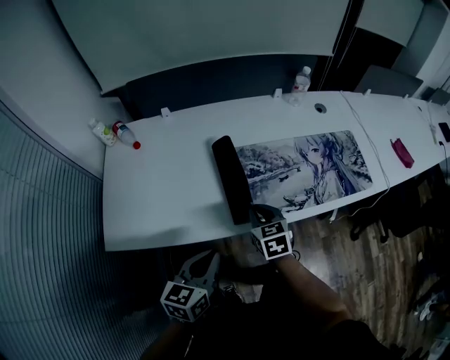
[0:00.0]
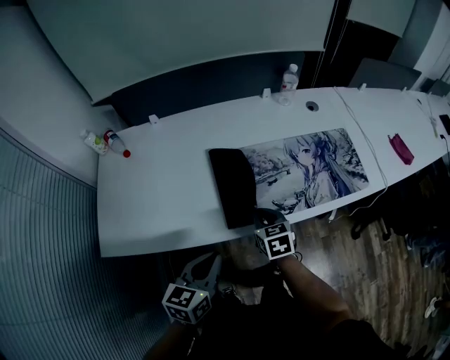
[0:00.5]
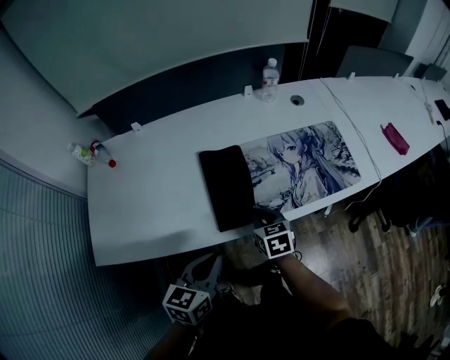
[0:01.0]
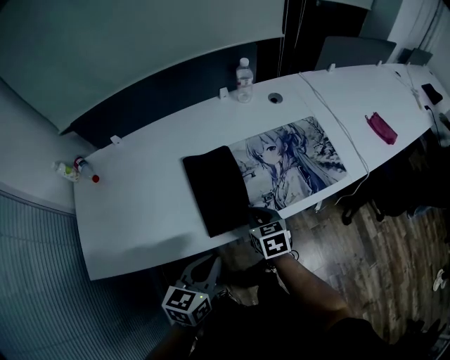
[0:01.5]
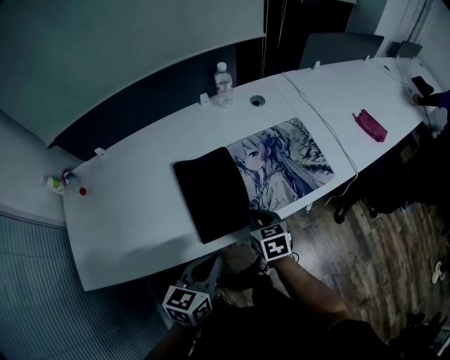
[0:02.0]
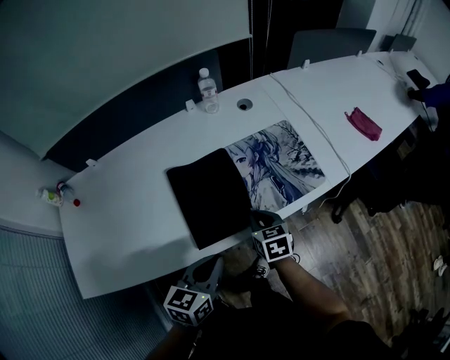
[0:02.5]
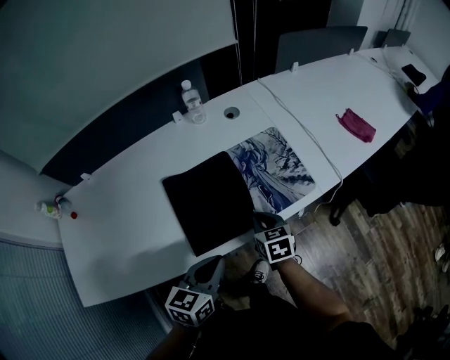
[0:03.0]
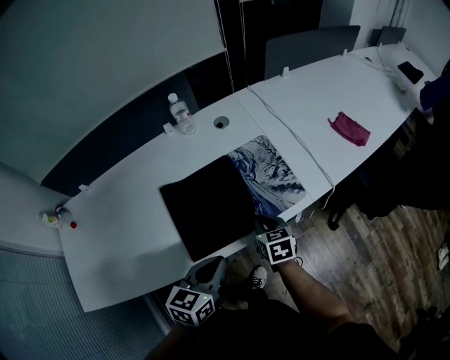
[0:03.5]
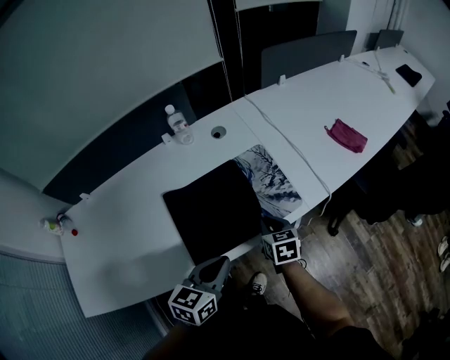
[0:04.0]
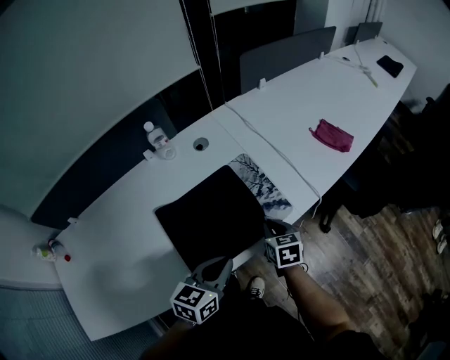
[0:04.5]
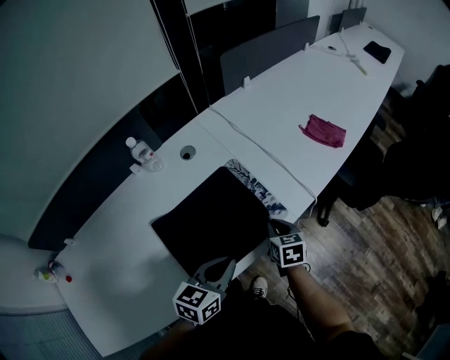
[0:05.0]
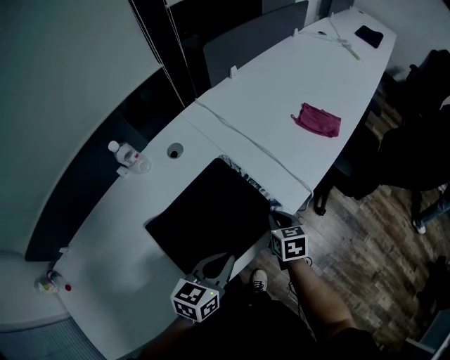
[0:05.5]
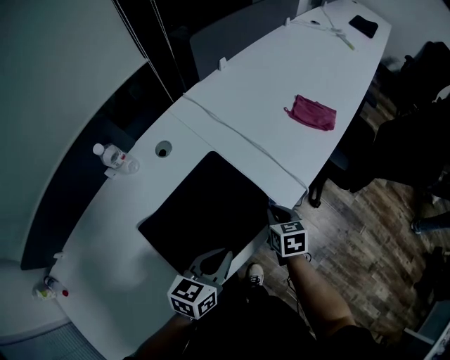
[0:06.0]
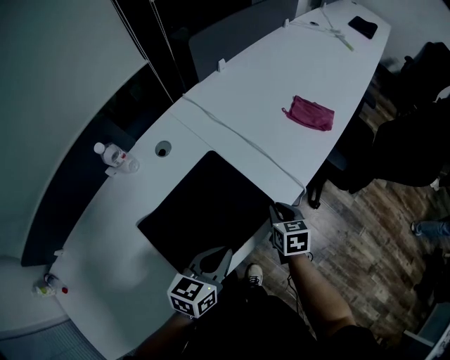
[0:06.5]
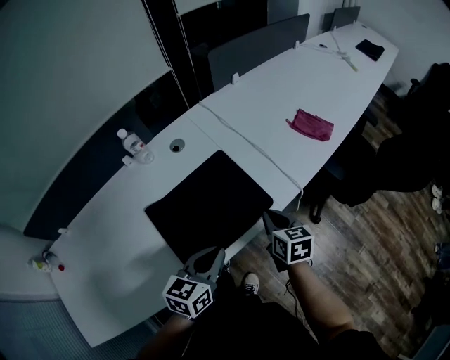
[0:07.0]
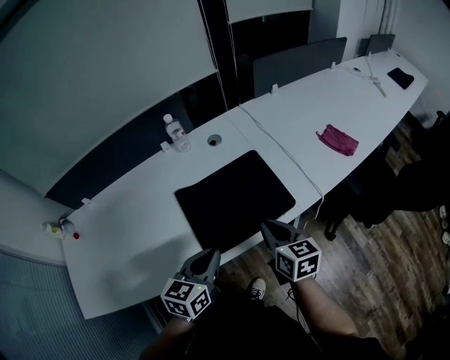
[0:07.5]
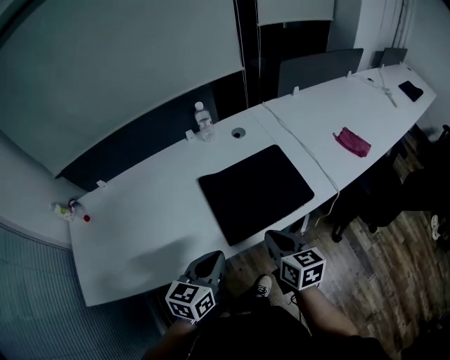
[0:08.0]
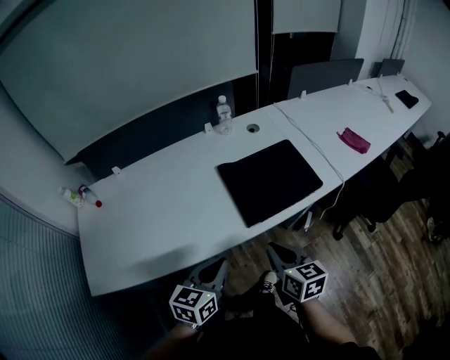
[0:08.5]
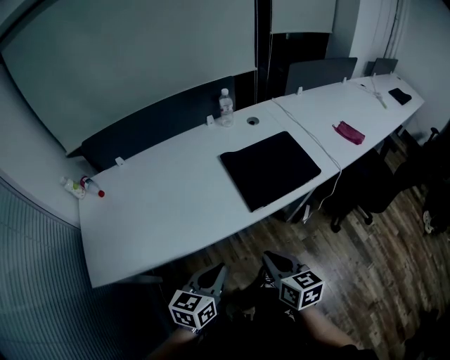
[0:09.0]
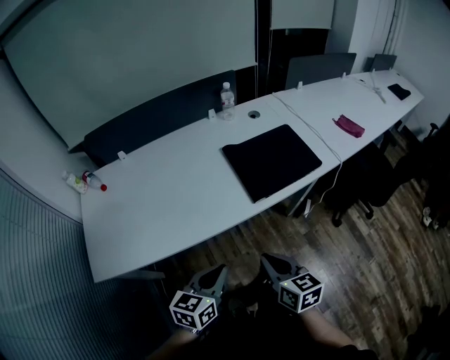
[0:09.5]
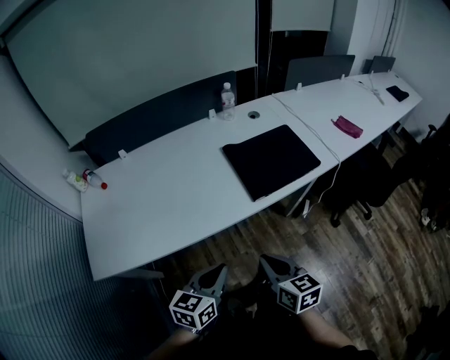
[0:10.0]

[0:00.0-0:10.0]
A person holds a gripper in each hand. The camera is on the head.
0:00.0 to 0:02.0: The right gripper travels to the right by roughly 20 cm, while the left gripper travels to the right and forward by roughly 20 cm.
0:02.0 to 0:04.0: The grippers both shift to the right and forward by about 20 cm.
0:04.0 to 0:06.0: The right gripper is displaced to the right and forward by roughly 15 cm, and rotates about 20 degrees. Meanwhile the left gripper is displaced forward by about 15 cm, and swivels roughly 20 degrees.
0:06.0 to 0:08.0: The left gripper changes place by some 25 cm, and rotates roughly 30 degrees. Meanwhile the right gripper changes place by some 30 cm, and swivels approximately 30 degrees.
0:08.0 to 0:10.0: Both grippers travel together backward and to the left, some 25 cm.

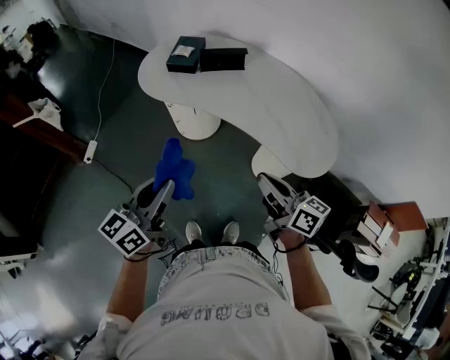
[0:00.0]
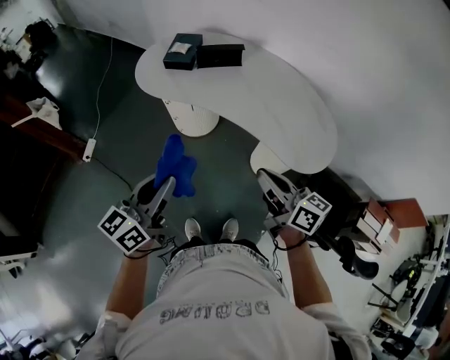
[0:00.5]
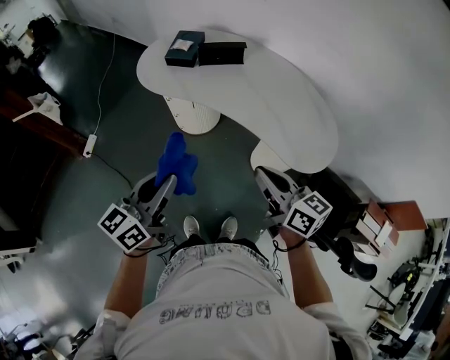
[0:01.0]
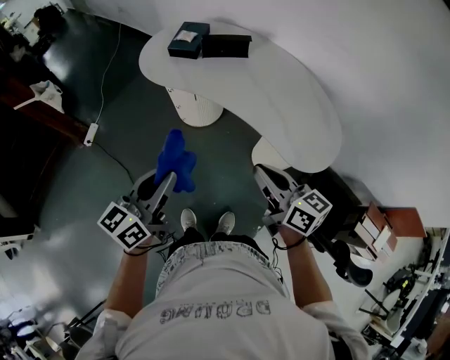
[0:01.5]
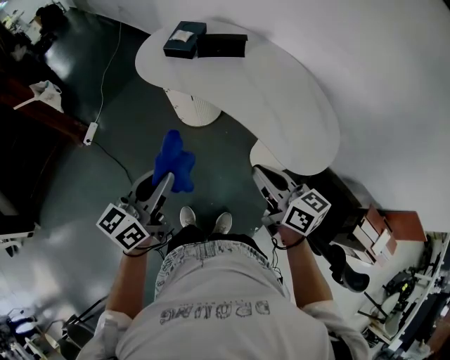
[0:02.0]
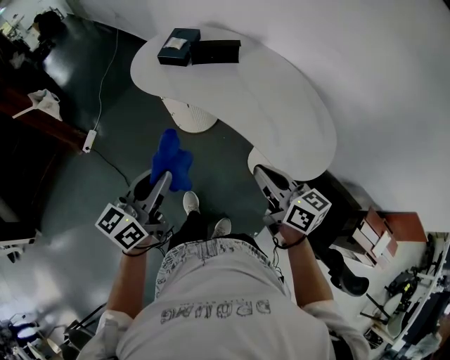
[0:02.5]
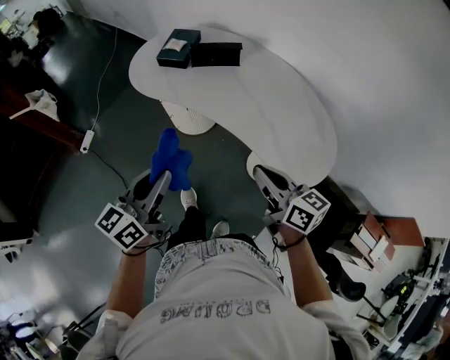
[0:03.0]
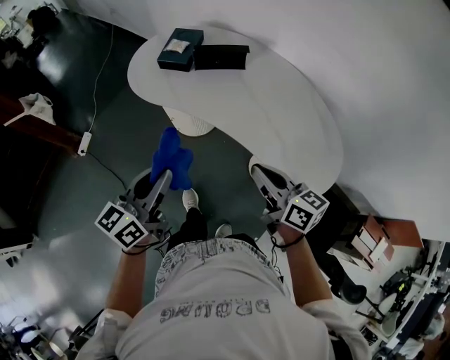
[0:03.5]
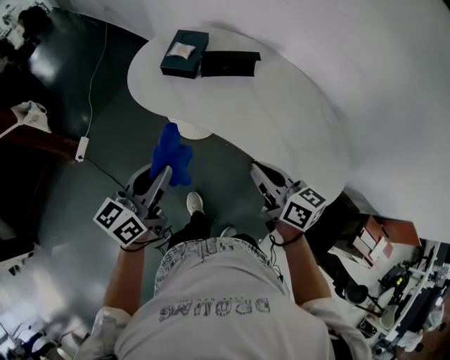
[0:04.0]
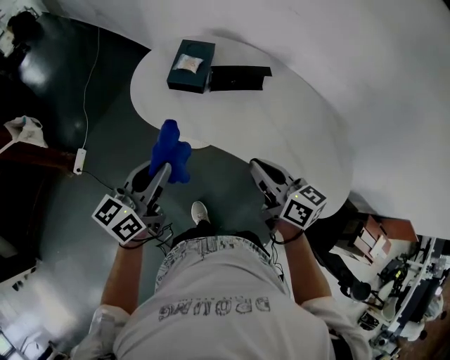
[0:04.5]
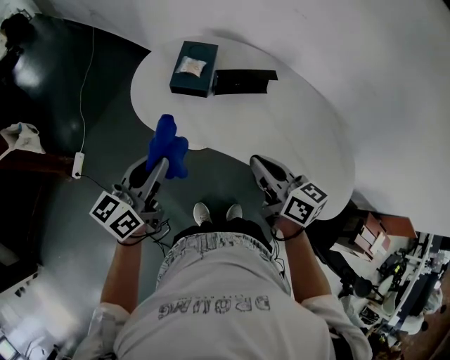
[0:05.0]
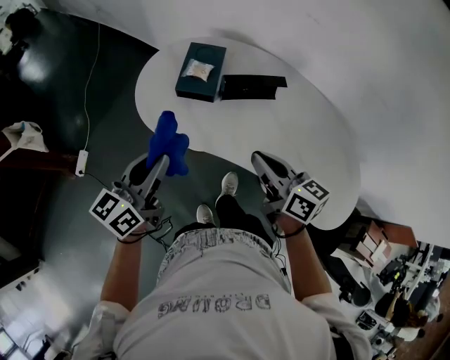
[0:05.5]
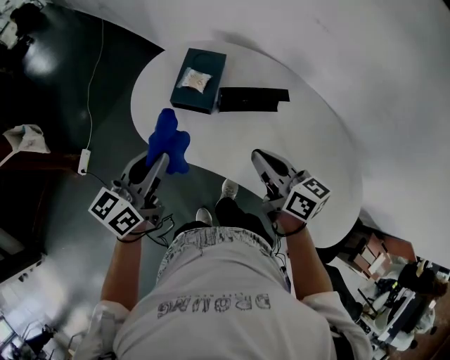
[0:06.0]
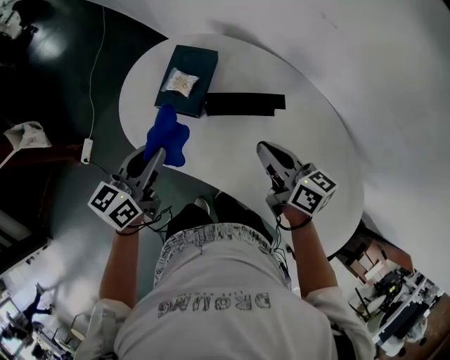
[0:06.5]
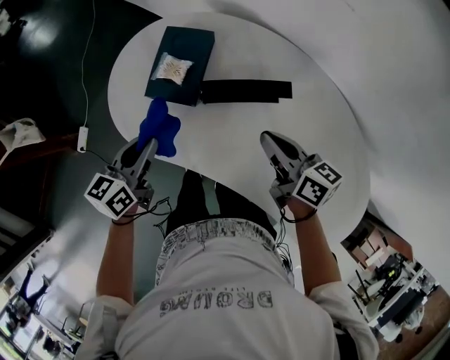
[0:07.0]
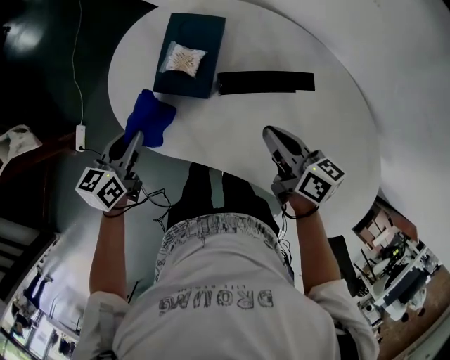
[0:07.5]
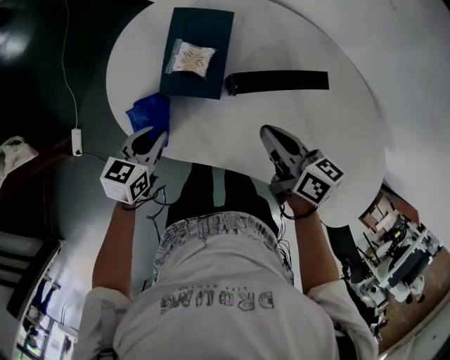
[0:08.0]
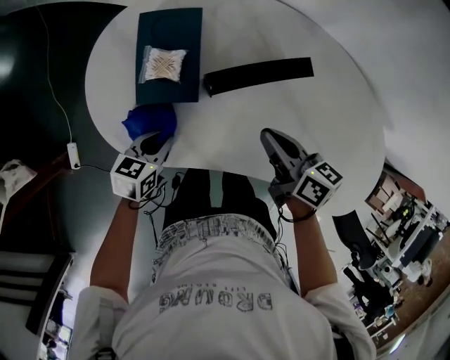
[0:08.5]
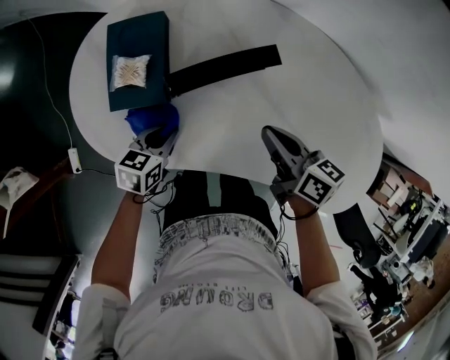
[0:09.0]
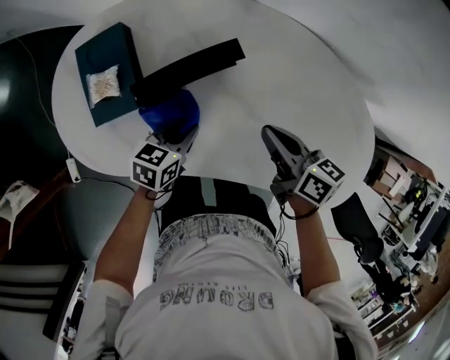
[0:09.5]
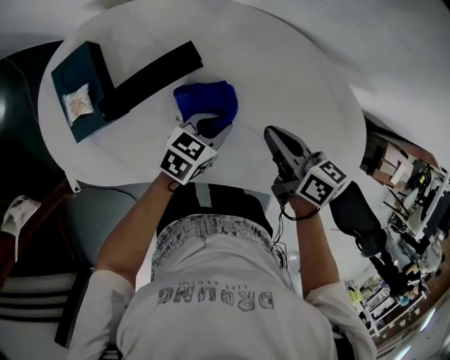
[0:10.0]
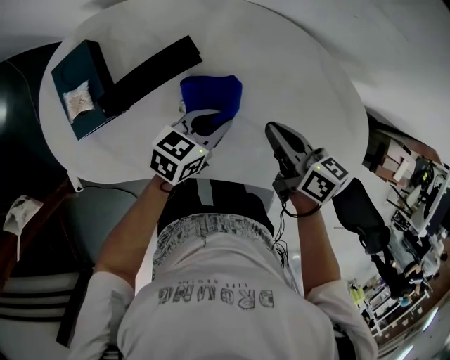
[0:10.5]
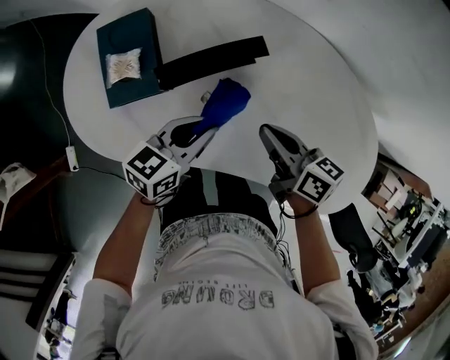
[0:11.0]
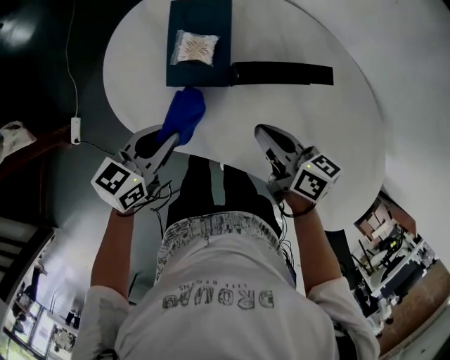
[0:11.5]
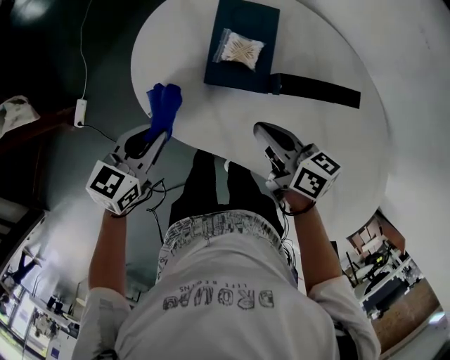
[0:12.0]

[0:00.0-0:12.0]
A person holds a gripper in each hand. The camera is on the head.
0:00.0 to 0:02.0: The left gripper goes roughly 5 cm to the right.
0:02.0 to 0:04.0: The two grippers go roughly 20 cm forward.
0:04.0 to 0:06.0: Both grippers move forward, some 25 cm.
0:06.0 to 0:08.0: The right gripper moves downward and forward, approximately 15 cm. Meanwhile the left gripper travels downward and forward by about 25 cm, and points its fingers approximately 30 degrees further downward.
0:08.0 to 0:10.0: The right gripper changes place by about 30 cm. The left gripper ends up some 40 cm from where it was, and rotates roughly 40 degrees.
0:10.0 to 0:12.0: The right gripper changes place by about 35 cm, and swivels roughly 30 degrees; the left gripper ends up approximately 50 cm from where it was, and changes its angle by roughly 40 degrees.

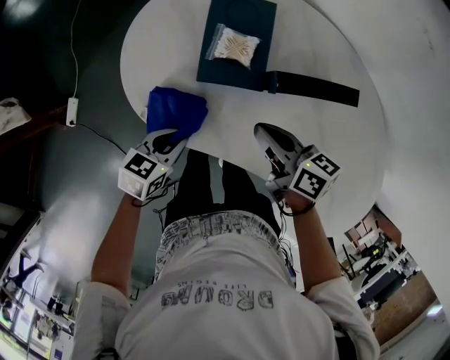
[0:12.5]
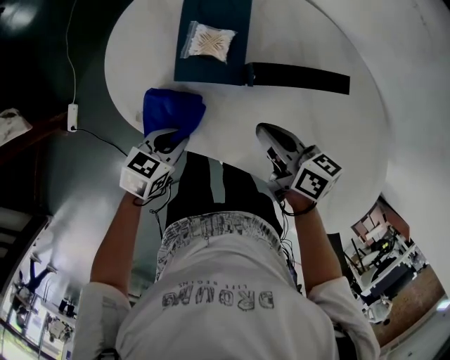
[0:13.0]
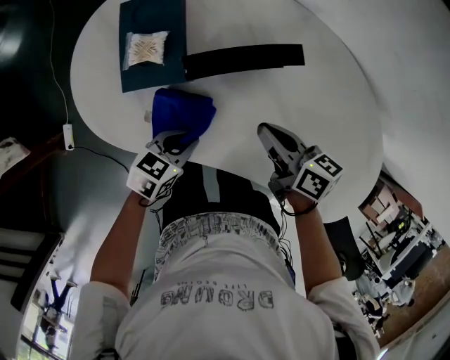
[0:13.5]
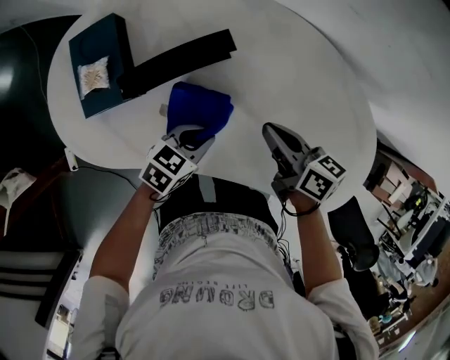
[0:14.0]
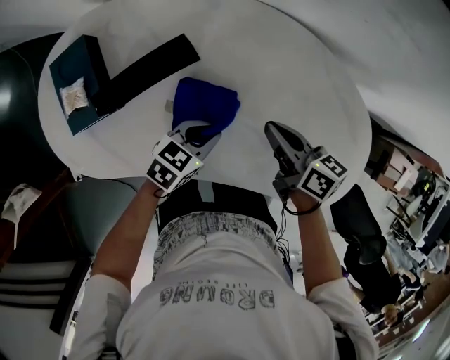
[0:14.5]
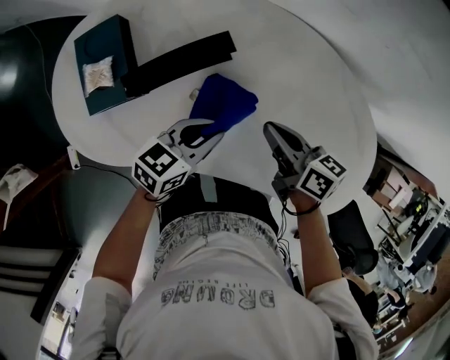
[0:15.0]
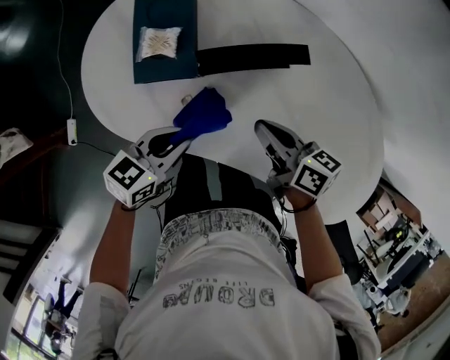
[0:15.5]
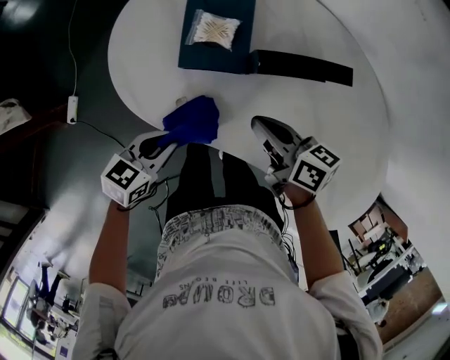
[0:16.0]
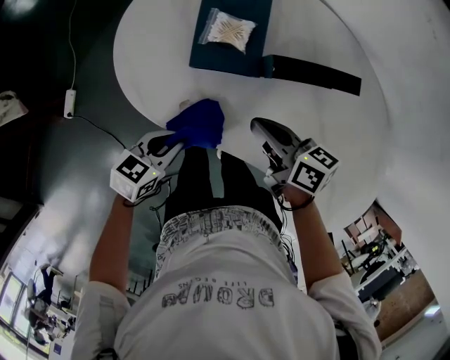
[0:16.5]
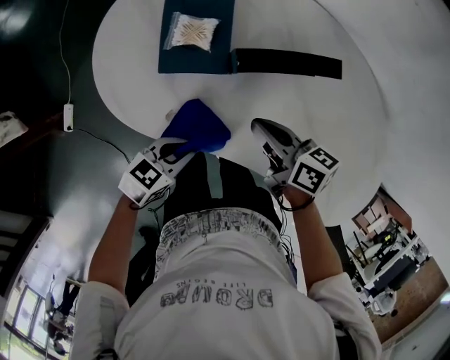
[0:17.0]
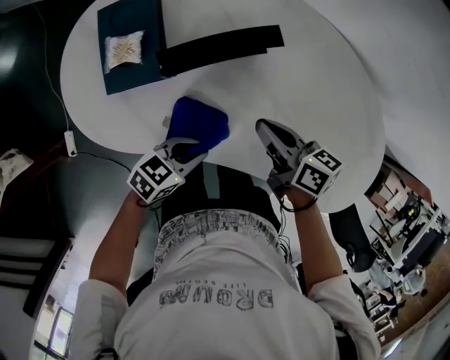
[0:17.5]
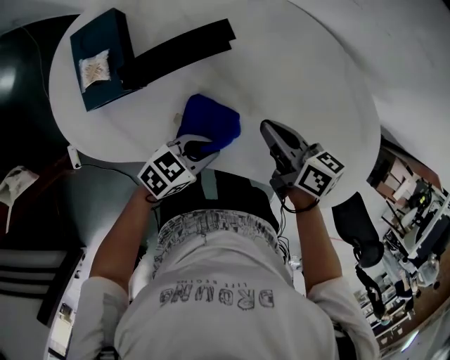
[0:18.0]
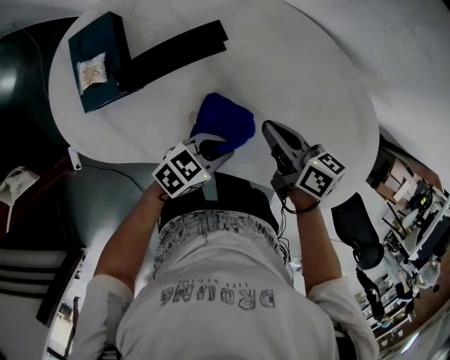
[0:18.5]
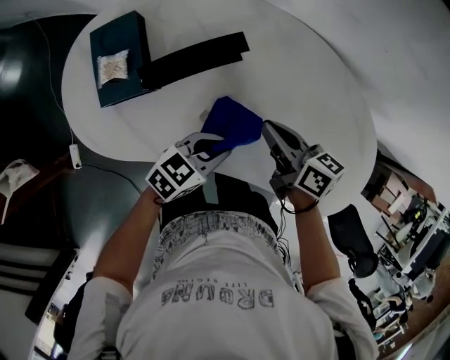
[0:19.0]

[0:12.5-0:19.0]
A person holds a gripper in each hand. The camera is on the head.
0:12.5 to 0:14.5: The right gripper ends up about 35 cm from where it was, and rotates approximately 30 degrees; the left gripper shifts by roughly 40 cm, and turns by some 40 degrees.
0:14.5 to 0:17.0: The right gripper shifts by roughly 25 cm, and changes its angle by roughly 20 degrees. Meanwhile the left gripper moves some 10 cm upward and comes back.
0:17.0 to 0:19.0: The right gripper goes about 20 cm to the right. The left gripper is displaced to the right and forward by approximately 25 cm.
